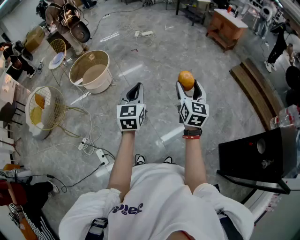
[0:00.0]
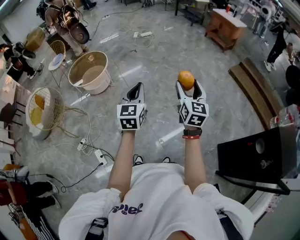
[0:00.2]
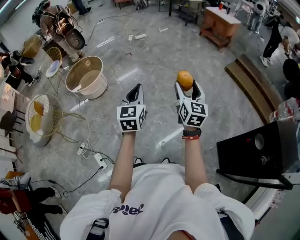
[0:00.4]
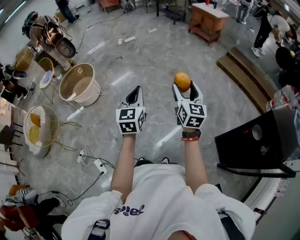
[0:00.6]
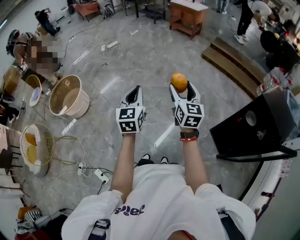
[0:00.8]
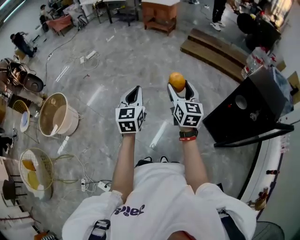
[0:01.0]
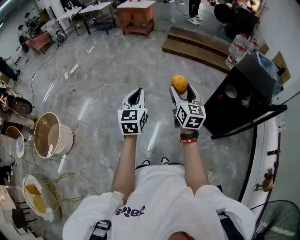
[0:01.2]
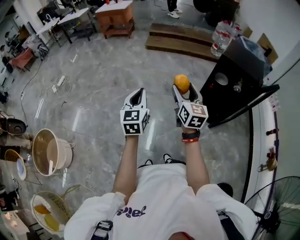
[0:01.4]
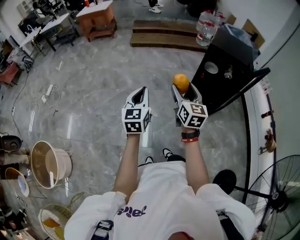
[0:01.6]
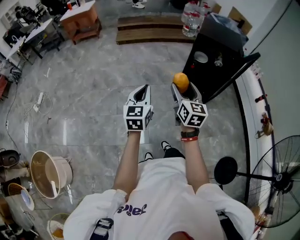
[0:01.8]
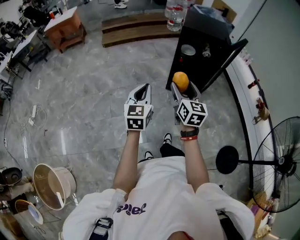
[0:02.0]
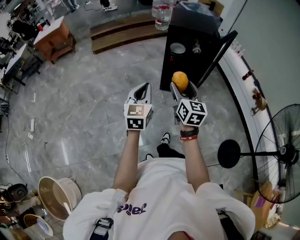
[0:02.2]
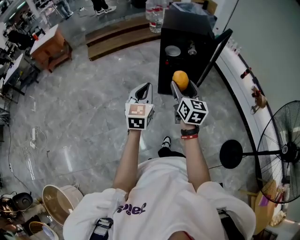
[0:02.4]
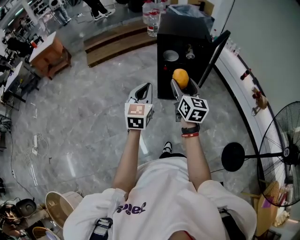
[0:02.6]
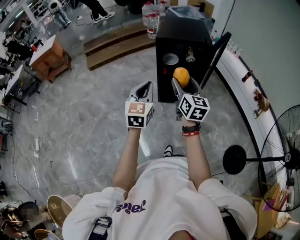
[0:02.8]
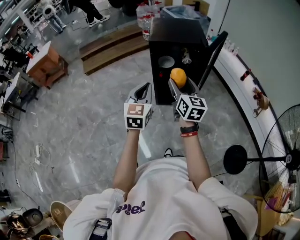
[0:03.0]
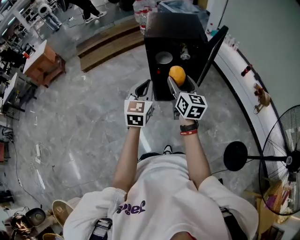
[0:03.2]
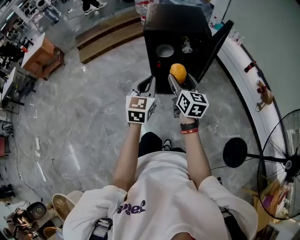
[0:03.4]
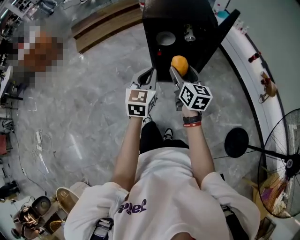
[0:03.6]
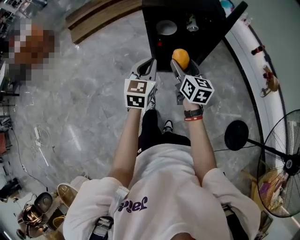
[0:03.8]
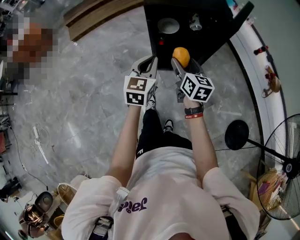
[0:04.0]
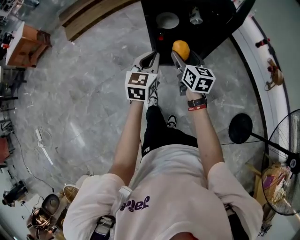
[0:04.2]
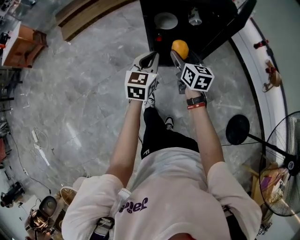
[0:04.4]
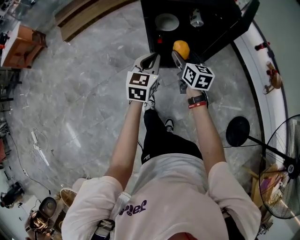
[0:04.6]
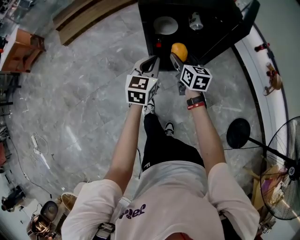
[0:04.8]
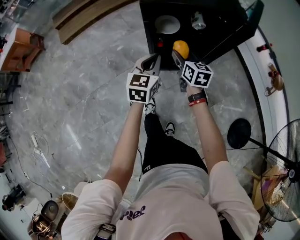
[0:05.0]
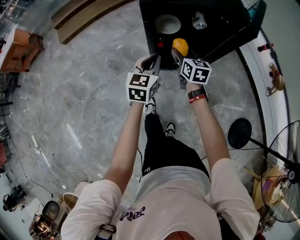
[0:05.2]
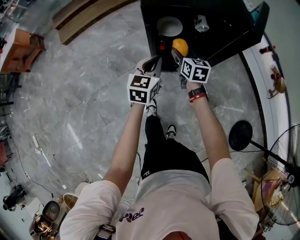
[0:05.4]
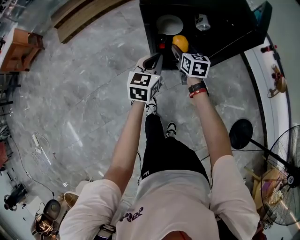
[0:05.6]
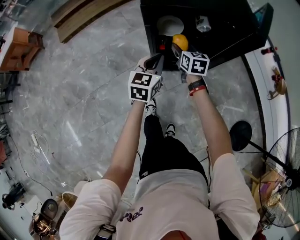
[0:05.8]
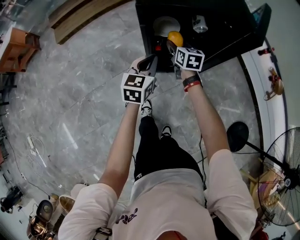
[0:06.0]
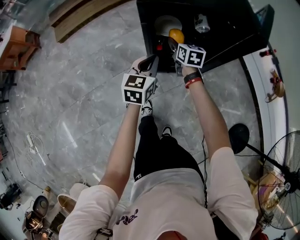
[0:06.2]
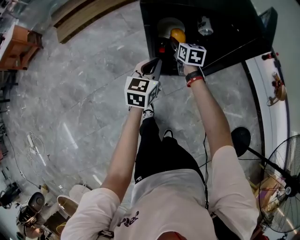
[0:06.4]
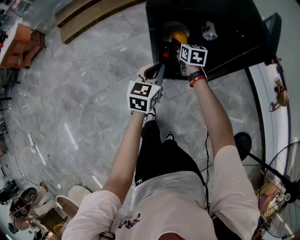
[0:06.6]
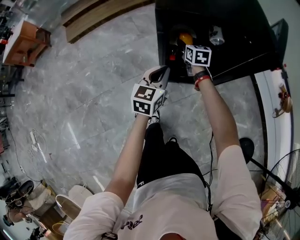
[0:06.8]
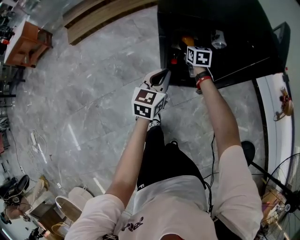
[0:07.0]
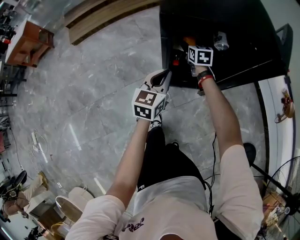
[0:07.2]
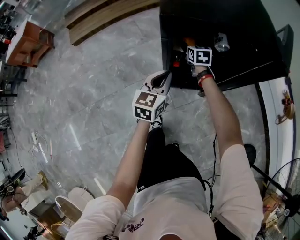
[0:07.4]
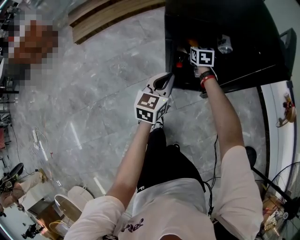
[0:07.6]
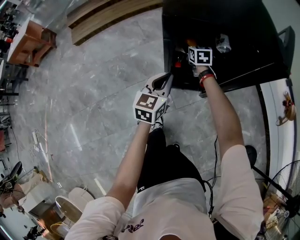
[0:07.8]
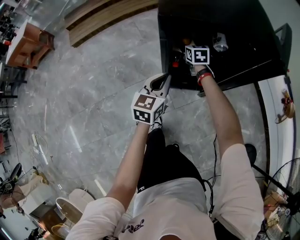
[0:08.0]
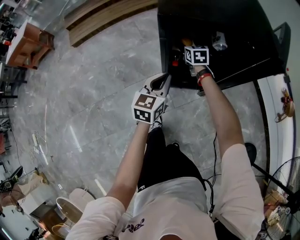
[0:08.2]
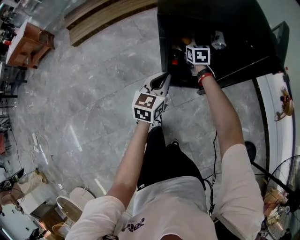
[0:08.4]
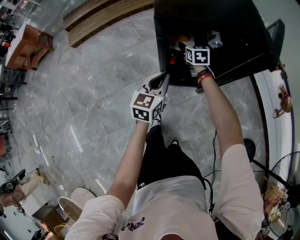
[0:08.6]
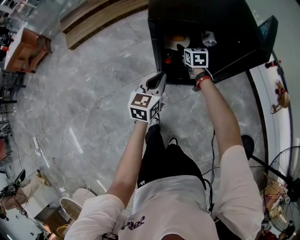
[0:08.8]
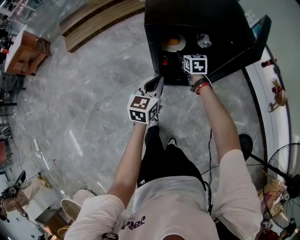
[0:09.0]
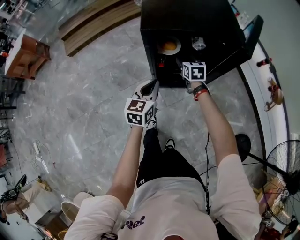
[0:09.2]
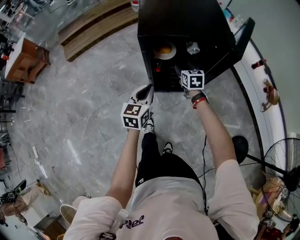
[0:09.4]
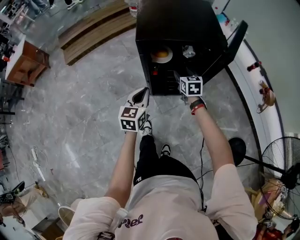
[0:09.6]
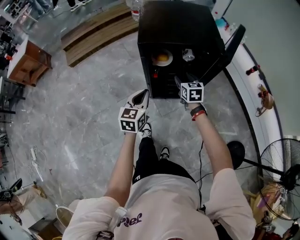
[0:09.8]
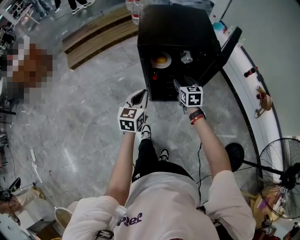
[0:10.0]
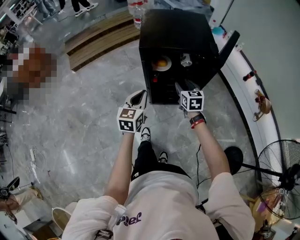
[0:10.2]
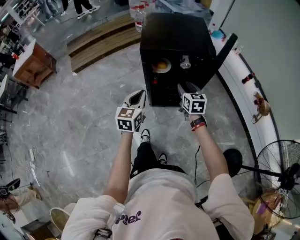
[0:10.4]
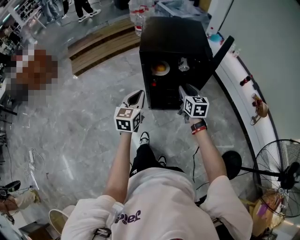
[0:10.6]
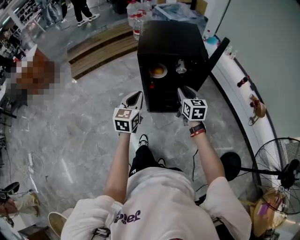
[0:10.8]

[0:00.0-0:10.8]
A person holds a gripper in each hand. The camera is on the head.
0:00.0 to 0:01.6: The right gripper changes place by about 30 cm, and rotates roughly 50 degrees. Meanwhile the left gripper changes place by about 35 cm, and rotates about 60 degrees.
0:01.6 to 0:03.0: The right gripper ends up about 30 cm from where it was, and swivels some 30 degrees. The left gripper ends up roughly 35 cm from where it was, and turns by about 30 degrees.
0:03.0 to 0:04.6: The left gripper moves forward and downward, roughly 35 cm, while the right gripper heads downward and forward, covering approximately 35 cm.
0:04.6 to 0:06.2: The right gripper travels forward and downward by approximately 20 cm; the left gripper heads forward and downward, covering roughly 15 cm.
0:06.2 to 0:07.8: The right gripper travels forward and downward by some 10 cm.
0:07.8 to 0:09.2: The left gripper travels upward and backward by roughly 10 cm. The right gripper is displaced backward, upward and to the right by roughly 20 cm.
0:09.2 to 0:10.8: The right gripper is displaced backward and upward by roughly 30 cm, and closes its fingers, while the left gripper heads upward and backward, covering approximately 20 cm.

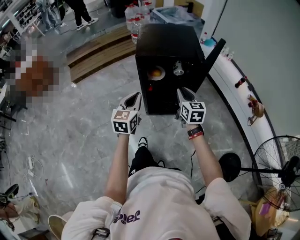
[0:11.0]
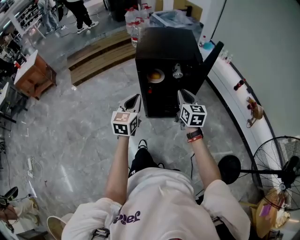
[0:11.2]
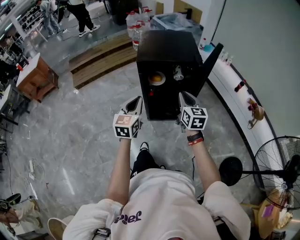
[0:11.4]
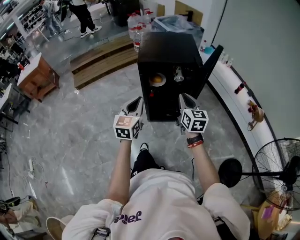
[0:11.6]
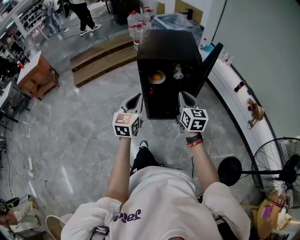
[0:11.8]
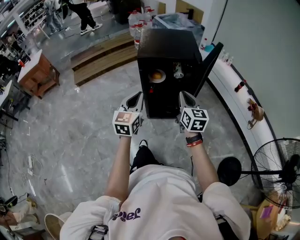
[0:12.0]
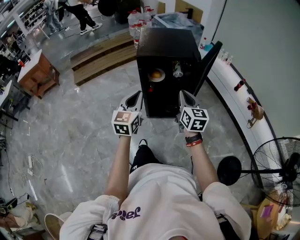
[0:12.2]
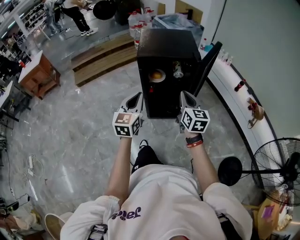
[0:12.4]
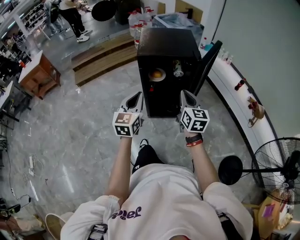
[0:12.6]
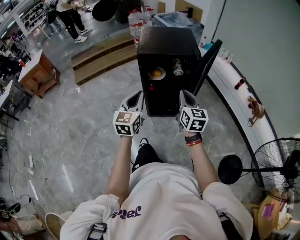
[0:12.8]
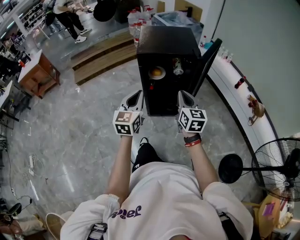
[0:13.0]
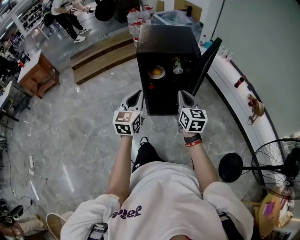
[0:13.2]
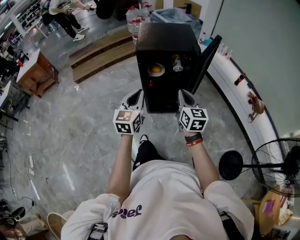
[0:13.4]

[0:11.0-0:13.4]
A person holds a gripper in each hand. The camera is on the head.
0:11.0 to 0:12.2: The left gripper is displaced backward by roughly 5 cm; the right gripper travels backward and upward by some 10 cm.
0:12.2 to 0:13.4: The grippers make only small movements.

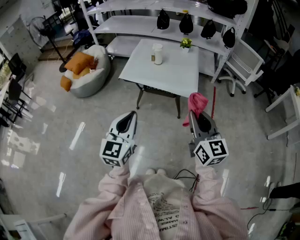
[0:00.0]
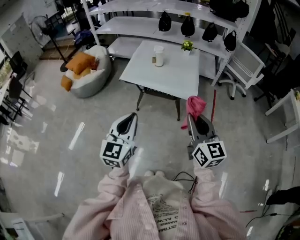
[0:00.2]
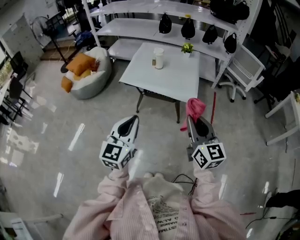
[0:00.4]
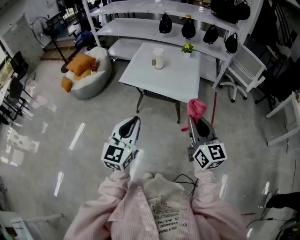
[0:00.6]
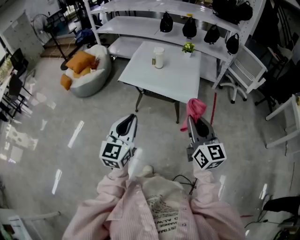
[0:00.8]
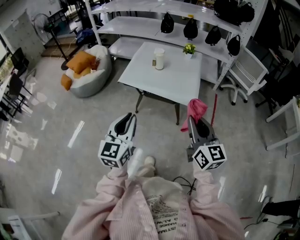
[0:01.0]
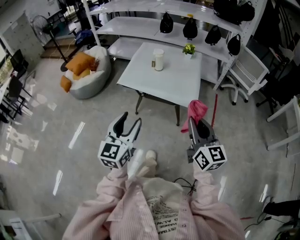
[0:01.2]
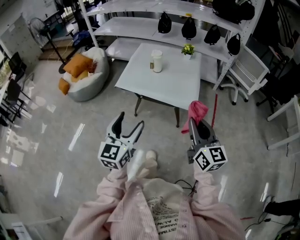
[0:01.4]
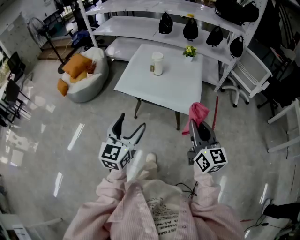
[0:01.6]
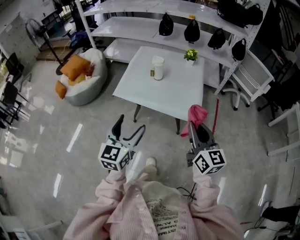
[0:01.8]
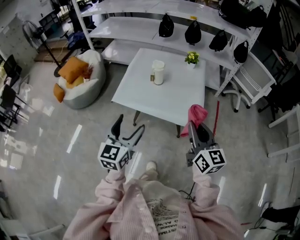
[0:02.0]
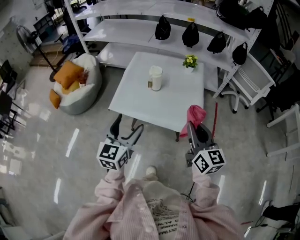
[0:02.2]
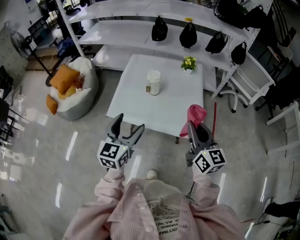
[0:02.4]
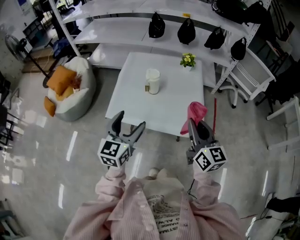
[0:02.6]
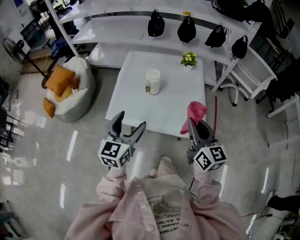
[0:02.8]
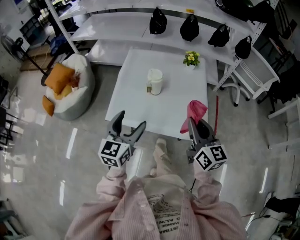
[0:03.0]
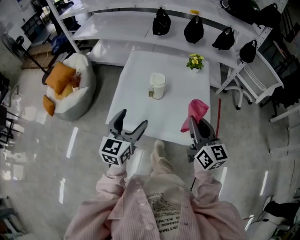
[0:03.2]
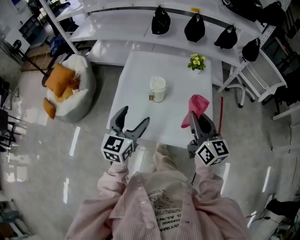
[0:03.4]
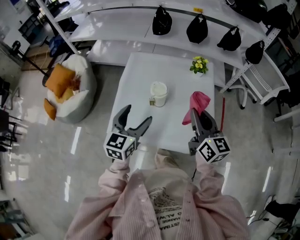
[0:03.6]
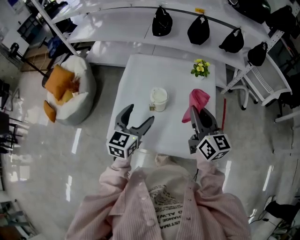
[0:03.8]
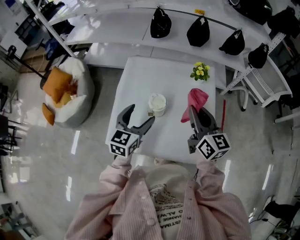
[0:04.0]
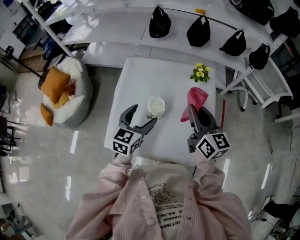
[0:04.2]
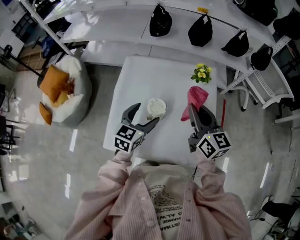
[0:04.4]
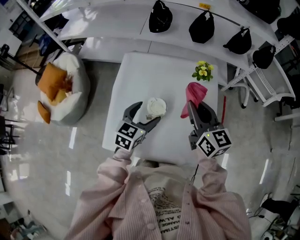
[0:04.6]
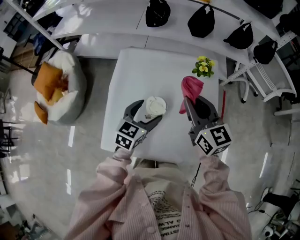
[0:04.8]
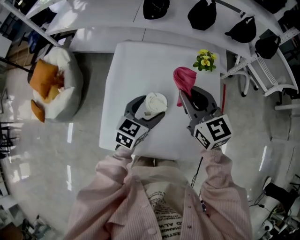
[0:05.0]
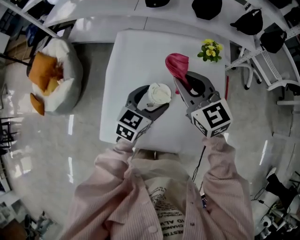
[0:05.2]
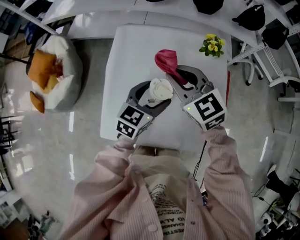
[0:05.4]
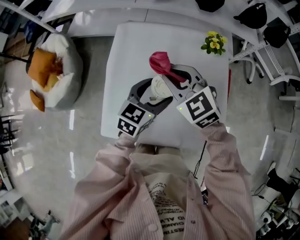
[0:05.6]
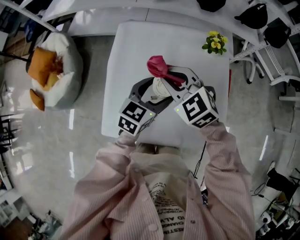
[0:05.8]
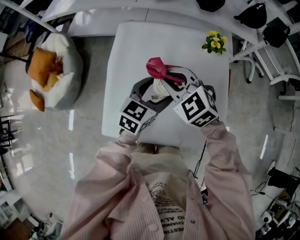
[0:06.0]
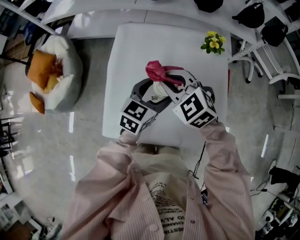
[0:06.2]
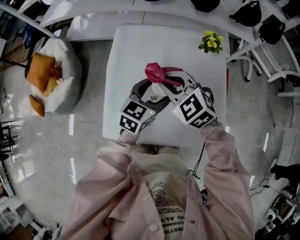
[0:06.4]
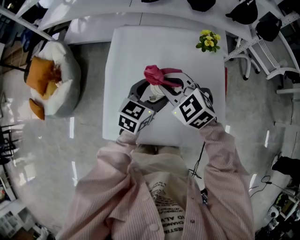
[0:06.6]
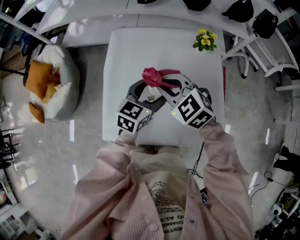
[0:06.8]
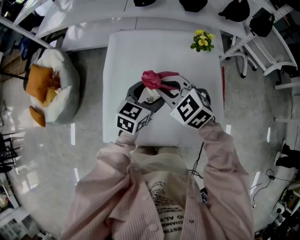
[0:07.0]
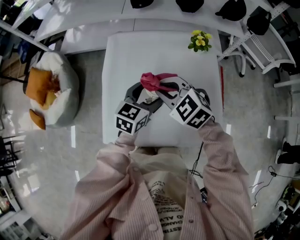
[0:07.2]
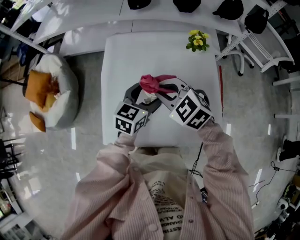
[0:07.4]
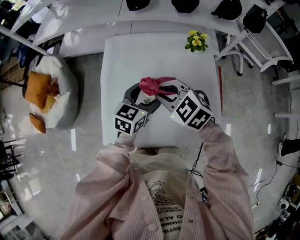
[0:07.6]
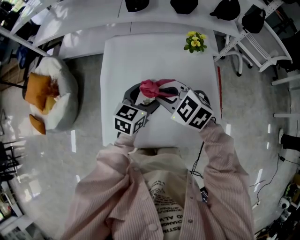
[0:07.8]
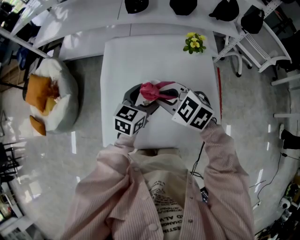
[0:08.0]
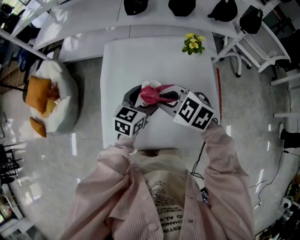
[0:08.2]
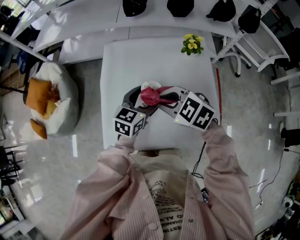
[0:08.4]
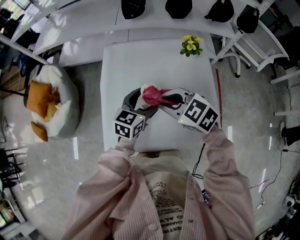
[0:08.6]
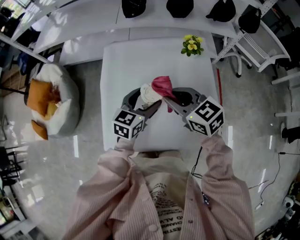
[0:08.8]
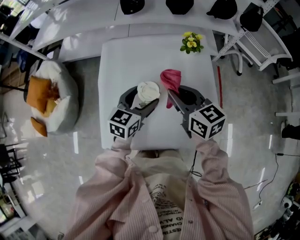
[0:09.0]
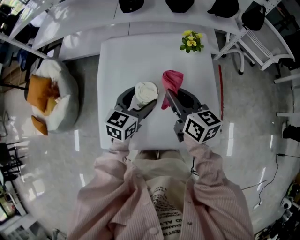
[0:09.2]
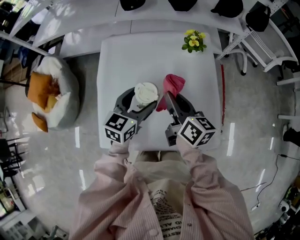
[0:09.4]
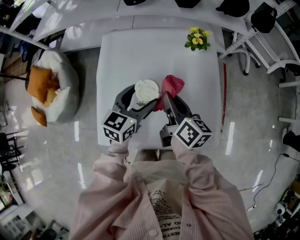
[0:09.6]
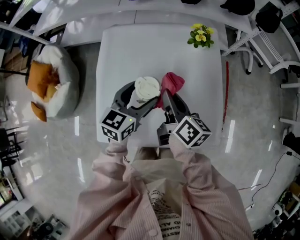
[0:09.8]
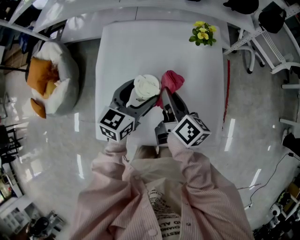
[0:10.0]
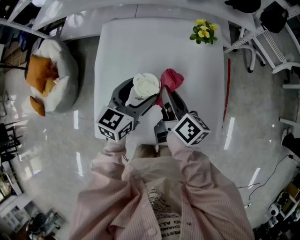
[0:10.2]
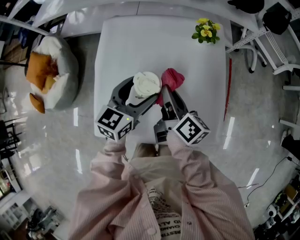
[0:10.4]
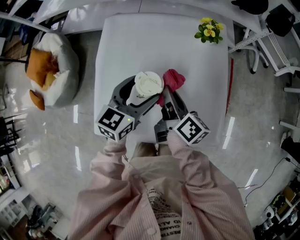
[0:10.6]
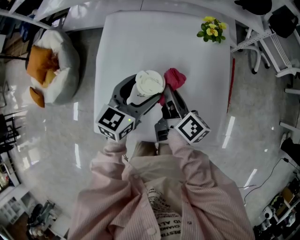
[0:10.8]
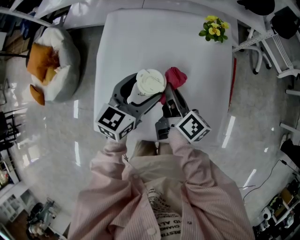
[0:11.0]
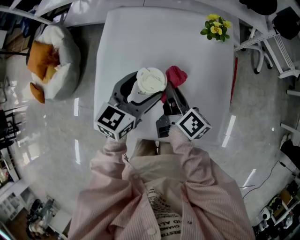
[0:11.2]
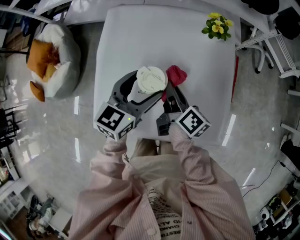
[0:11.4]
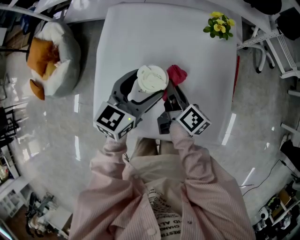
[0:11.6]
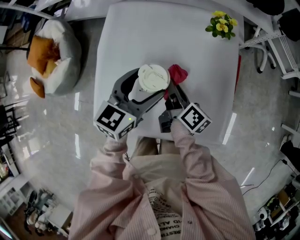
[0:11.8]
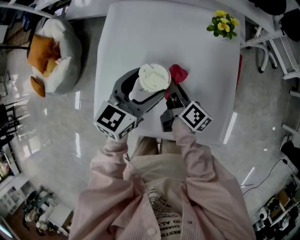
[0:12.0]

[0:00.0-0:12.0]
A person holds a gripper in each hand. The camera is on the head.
0:00.0 to 0:01.6: Both grippers move forward, roughly 10 cm. The left gripper opens its fingers.
0:01.6 to 0:03.0: Both grippers move forward, roughly 30 cm.
0:03.0 to 0:04.4: The grippers both shift forward by about 25 cm.
0:04.4 to 0:06.0: The left gripper moves roughly 5 cm. Meanwhile the right gripper moves to the left and downward, approximately 20 cm, and changes its angle by about 60 degrees.
0:06.0 to 0:07.6: There are only small adjustments of the grippers.
0:07.6 to 0:09.0: The right gripper travels to the right by some 10 cm, and rotates approximately 50 degrees.
0:09.0 to 0:10.4: The right gripper goes about 10 cm downward, and rotates around the line of its fingers by roughly 50 degrees, clockwise from behind.
0:10.4 to 0:12.0: The right gripper travels downward by some 10 cm.
